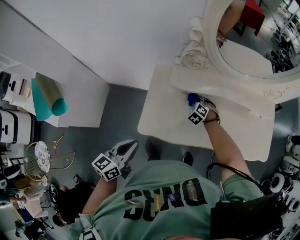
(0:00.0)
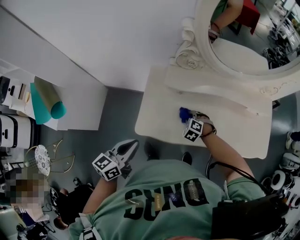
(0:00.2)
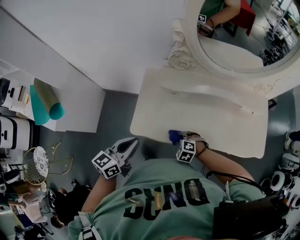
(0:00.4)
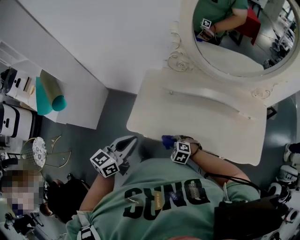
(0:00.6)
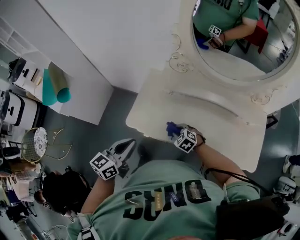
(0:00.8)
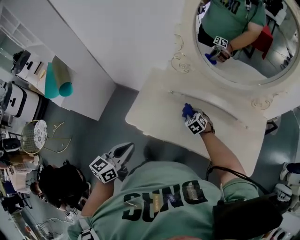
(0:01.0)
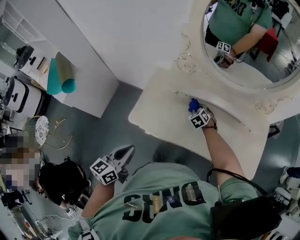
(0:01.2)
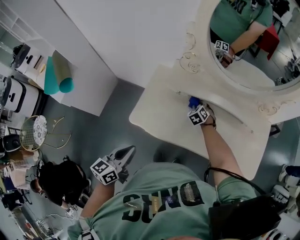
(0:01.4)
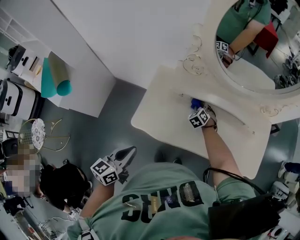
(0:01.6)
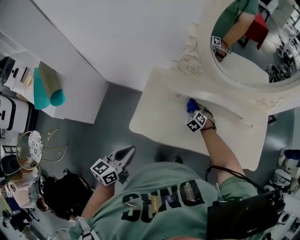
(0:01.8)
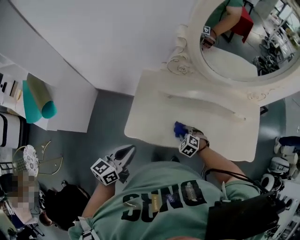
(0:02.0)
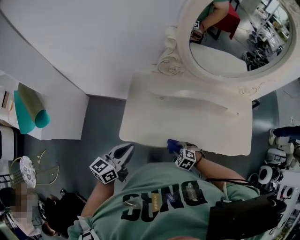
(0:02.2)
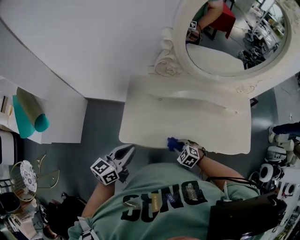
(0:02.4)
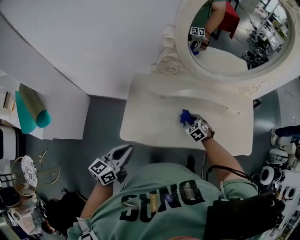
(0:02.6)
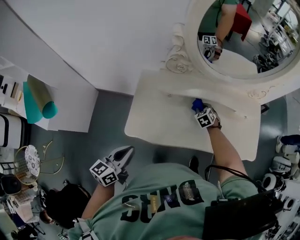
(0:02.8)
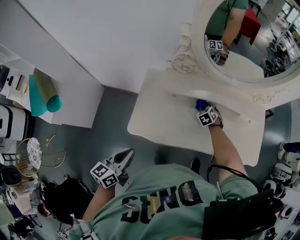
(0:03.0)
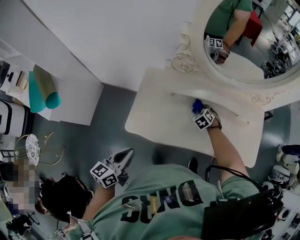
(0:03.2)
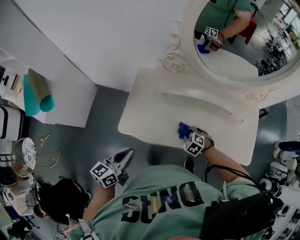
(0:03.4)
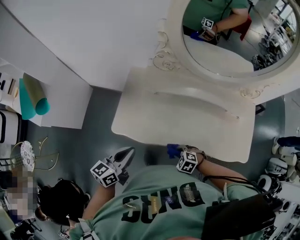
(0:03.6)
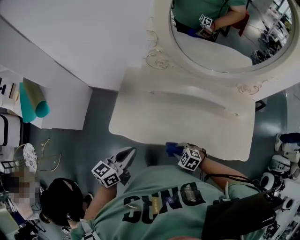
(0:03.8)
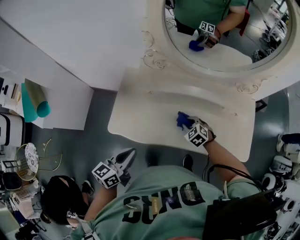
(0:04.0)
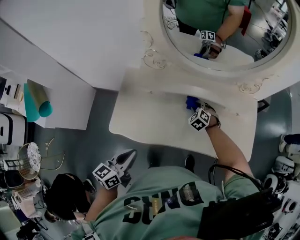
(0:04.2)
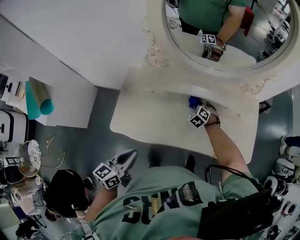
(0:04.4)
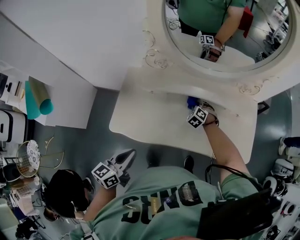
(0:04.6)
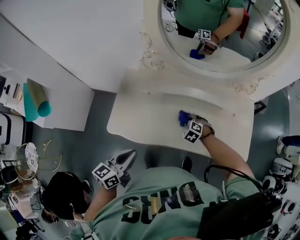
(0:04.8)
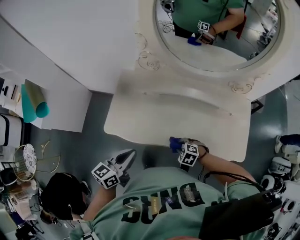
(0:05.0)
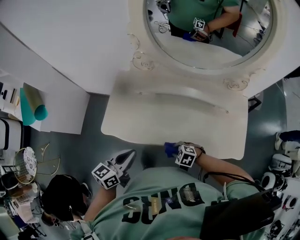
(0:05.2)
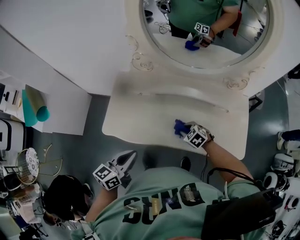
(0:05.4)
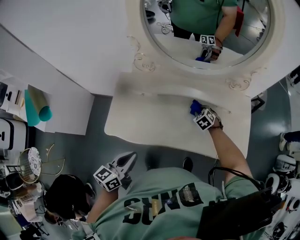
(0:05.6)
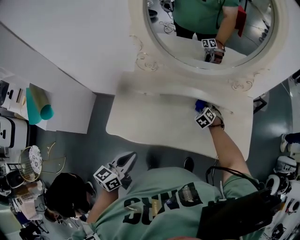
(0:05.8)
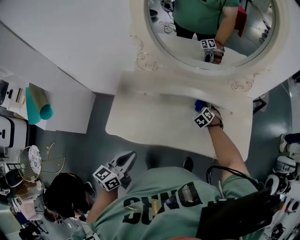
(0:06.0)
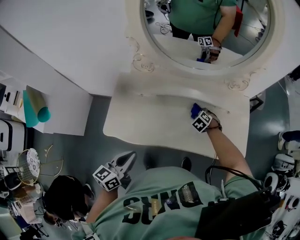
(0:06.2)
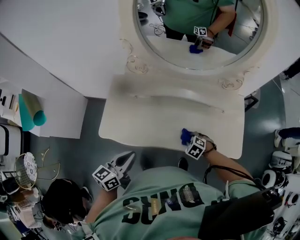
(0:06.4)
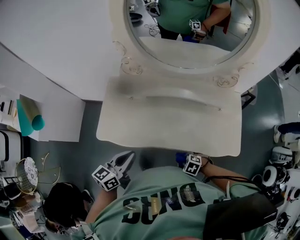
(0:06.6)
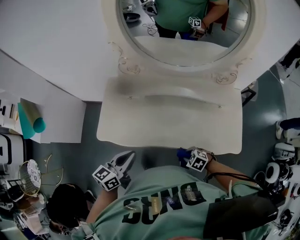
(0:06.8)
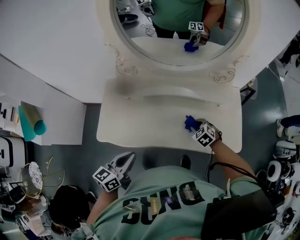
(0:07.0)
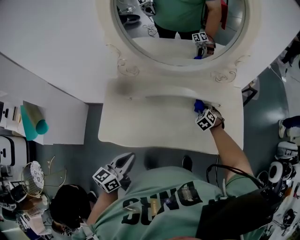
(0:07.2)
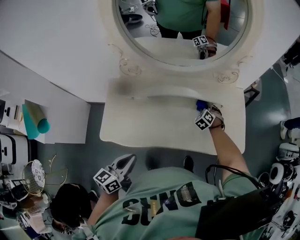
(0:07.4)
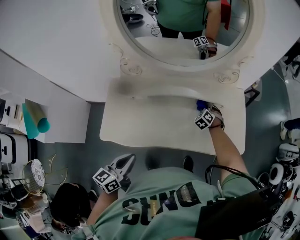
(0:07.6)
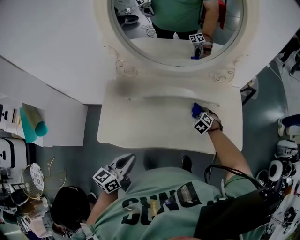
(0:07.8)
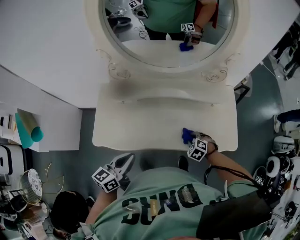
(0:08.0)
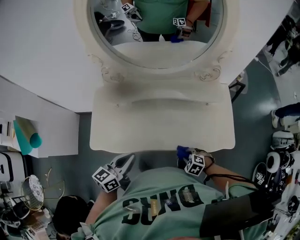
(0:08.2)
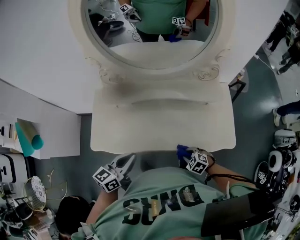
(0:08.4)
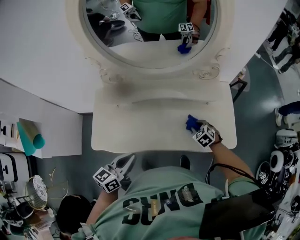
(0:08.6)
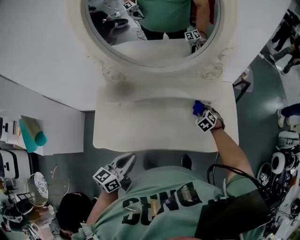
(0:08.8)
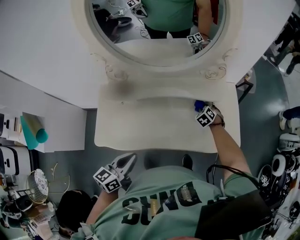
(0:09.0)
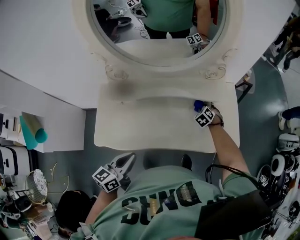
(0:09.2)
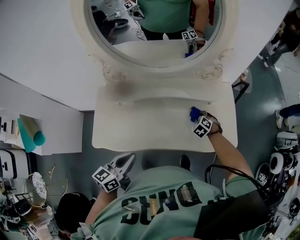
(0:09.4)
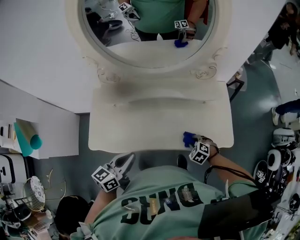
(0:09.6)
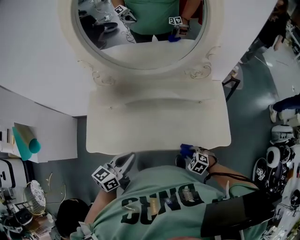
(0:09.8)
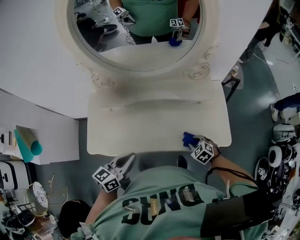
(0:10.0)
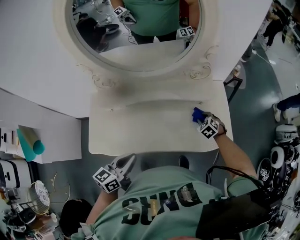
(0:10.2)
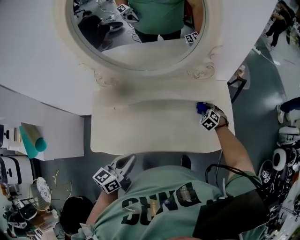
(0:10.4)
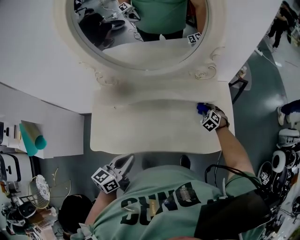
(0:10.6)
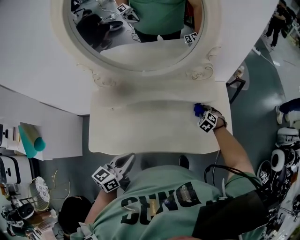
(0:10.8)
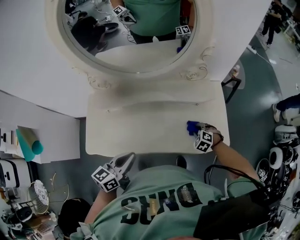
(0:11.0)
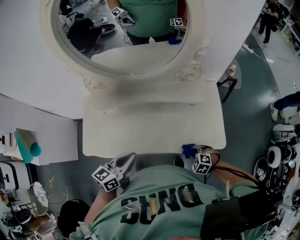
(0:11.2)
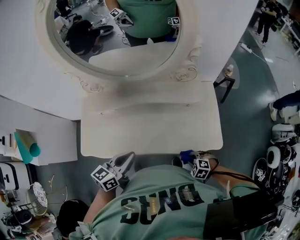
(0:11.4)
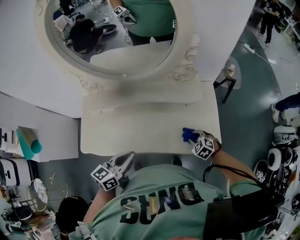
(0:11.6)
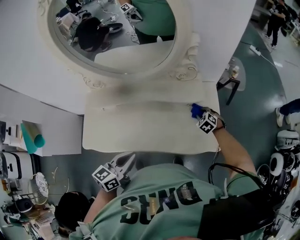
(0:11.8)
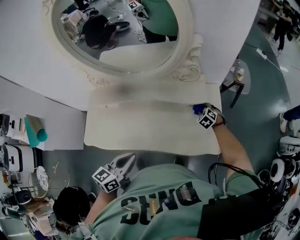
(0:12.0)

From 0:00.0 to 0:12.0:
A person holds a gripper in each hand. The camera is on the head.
From 0:01.6 to 0:03.0: The right gripper is displaced to the right by some 5 cm, and travels backward and back again, some 30 cm each way.
From 0:03.0 to 0:04.4: The left gripper ends up approximately 15 cm from where it was.
From 0:07.6 to 0:09.0: The left gripper ends up approximately 5 cm from where it was.
From 0:10.4 to 0:12.0: The left gripper changes place by roughly 15 cm.

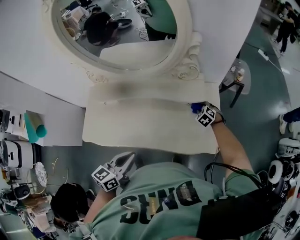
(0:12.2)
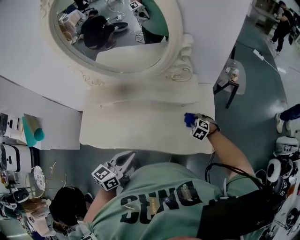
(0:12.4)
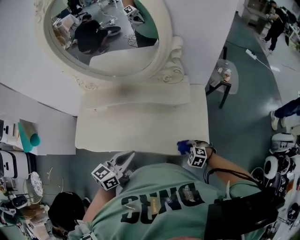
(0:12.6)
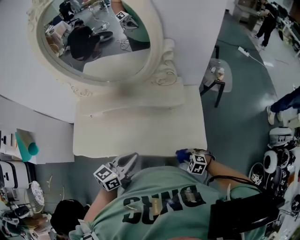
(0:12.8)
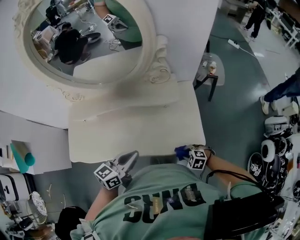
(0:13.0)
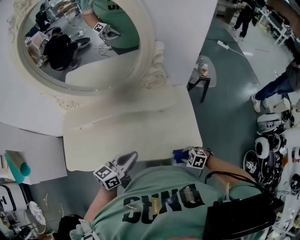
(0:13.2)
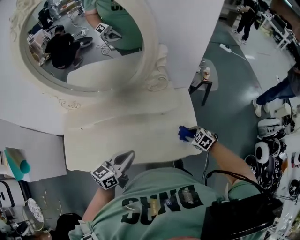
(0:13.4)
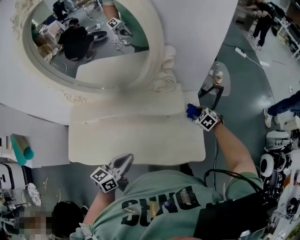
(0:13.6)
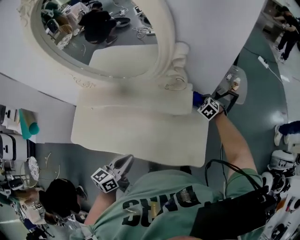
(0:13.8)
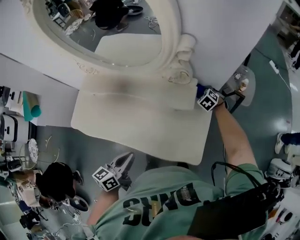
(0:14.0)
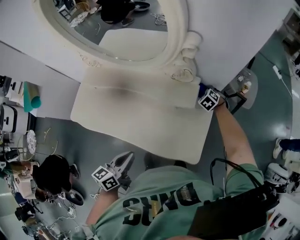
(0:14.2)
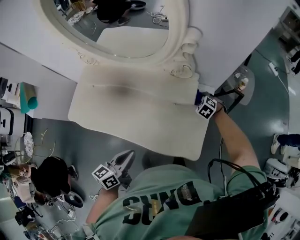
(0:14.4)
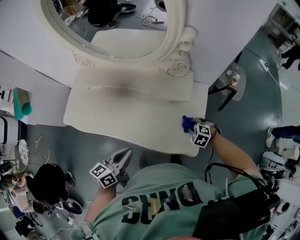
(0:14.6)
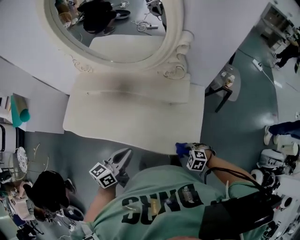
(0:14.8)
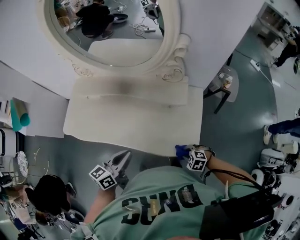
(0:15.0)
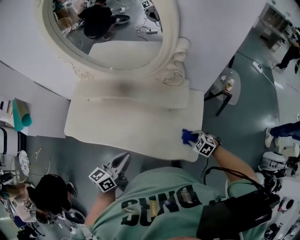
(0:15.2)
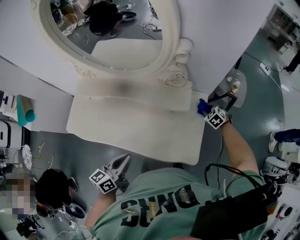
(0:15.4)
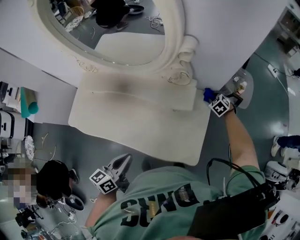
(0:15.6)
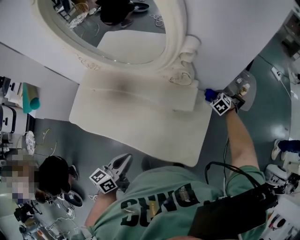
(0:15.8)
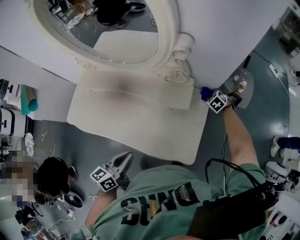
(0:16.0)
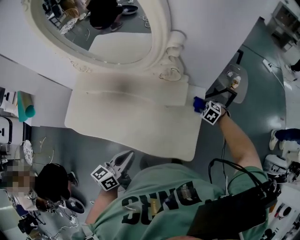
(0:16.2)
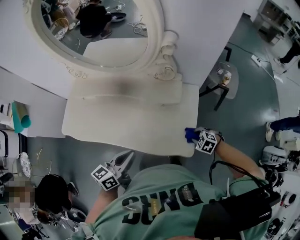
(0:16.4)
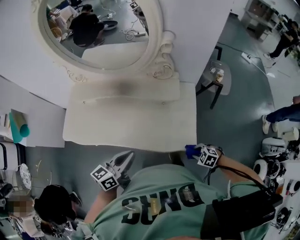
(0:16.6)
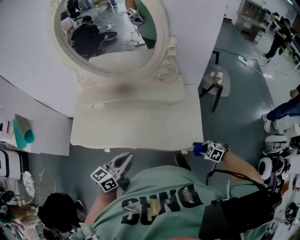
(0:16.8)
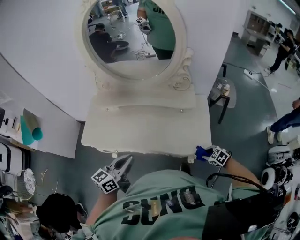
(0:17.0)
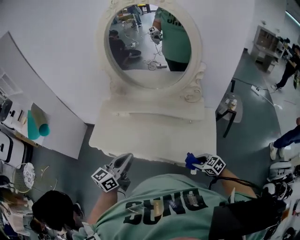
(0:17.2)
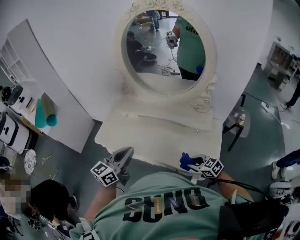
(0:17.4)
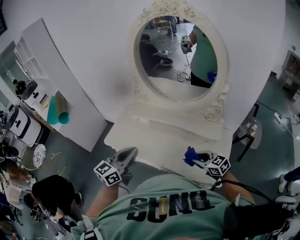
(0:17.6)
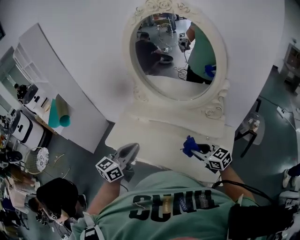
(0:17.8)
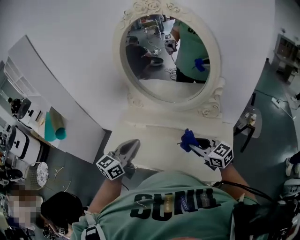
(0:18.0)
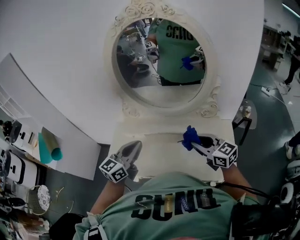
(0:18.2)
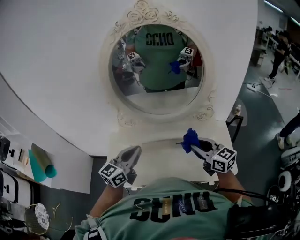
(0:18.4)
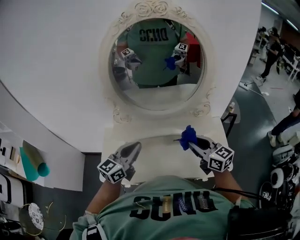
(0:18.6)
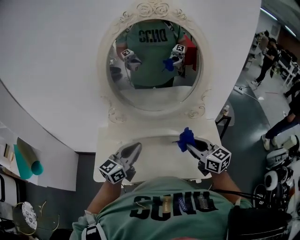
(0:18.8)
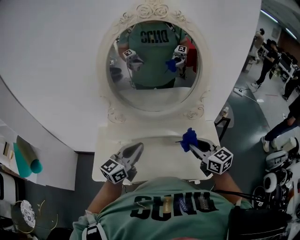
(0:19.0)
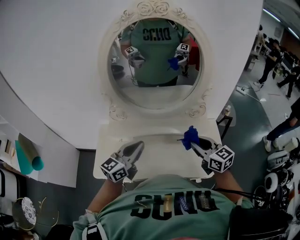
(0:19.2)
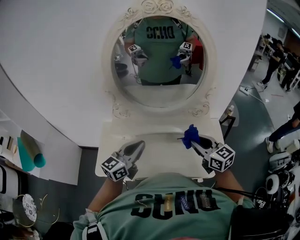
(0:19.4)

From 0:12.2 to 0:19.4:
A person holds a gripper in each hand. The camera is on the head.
From 0:12.2 to 0:13.6: The left gripper changes place by approximately 10 cm.
From 0:13.6 to 0:15.0: The left gripper changes place by approximately 5 cm. Meanwhile the right gripper shifts by approximately 30 cm, and changes its angle by some 40 degrees.
From 0:16.6 to 0:18.0: The left gripper shifts roughly 25 cm to the left, upward and forward, and turns by approximately 30 degrees. The right gripper travels upward, forward and to the left by roughly 50 cm, and tips its fingers upward by approximately 50 degrees.
From 0:18.0 to 0:19.4: The right gripper ends up approximately 5 cm from where it was, and rotates some 30 degrees; the left gripper is displaced forward by some 5 cm.

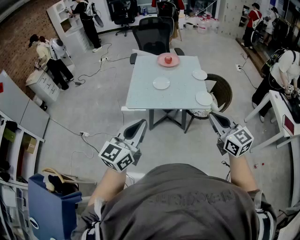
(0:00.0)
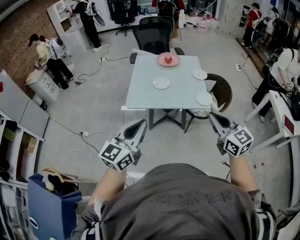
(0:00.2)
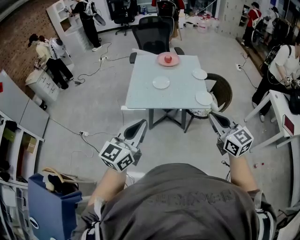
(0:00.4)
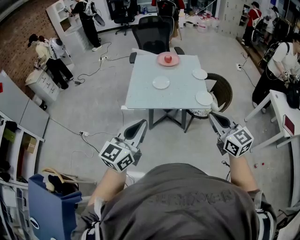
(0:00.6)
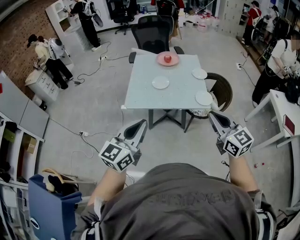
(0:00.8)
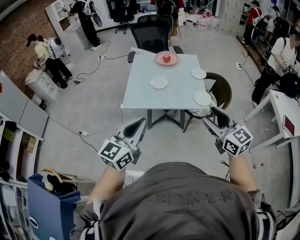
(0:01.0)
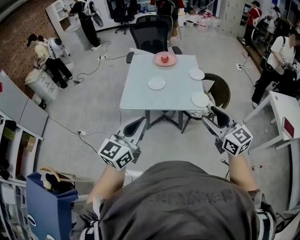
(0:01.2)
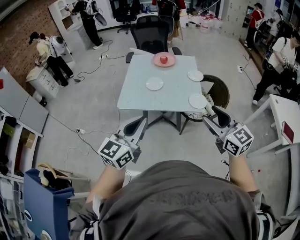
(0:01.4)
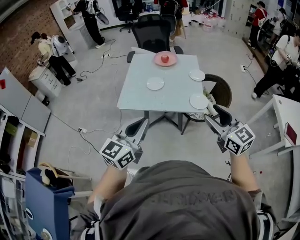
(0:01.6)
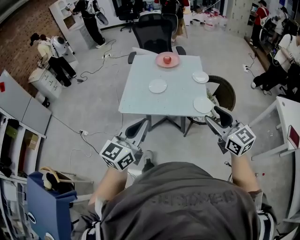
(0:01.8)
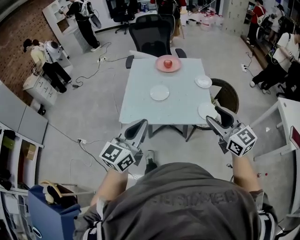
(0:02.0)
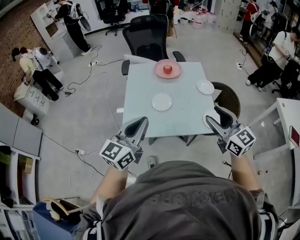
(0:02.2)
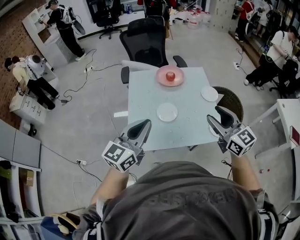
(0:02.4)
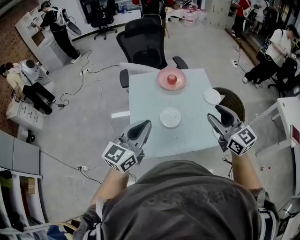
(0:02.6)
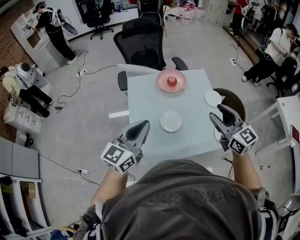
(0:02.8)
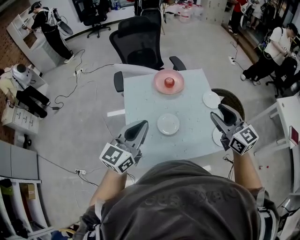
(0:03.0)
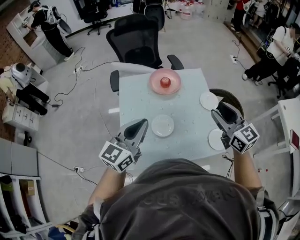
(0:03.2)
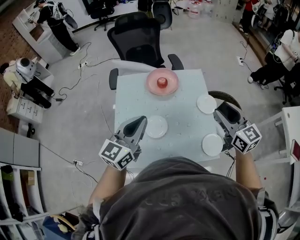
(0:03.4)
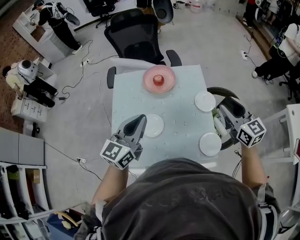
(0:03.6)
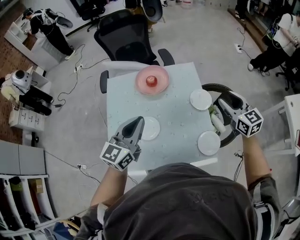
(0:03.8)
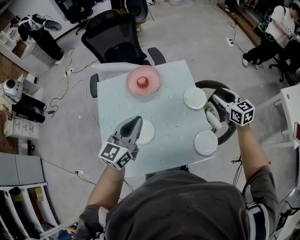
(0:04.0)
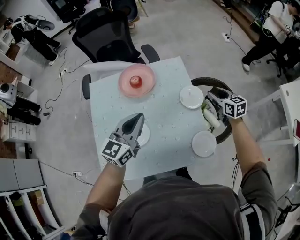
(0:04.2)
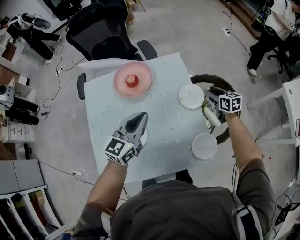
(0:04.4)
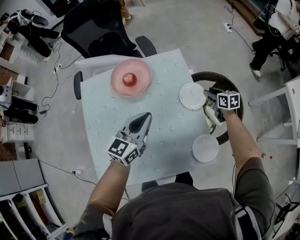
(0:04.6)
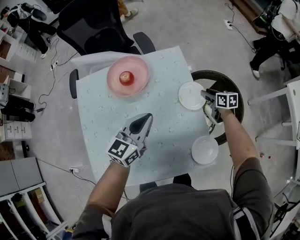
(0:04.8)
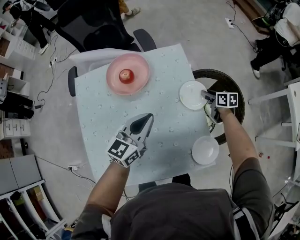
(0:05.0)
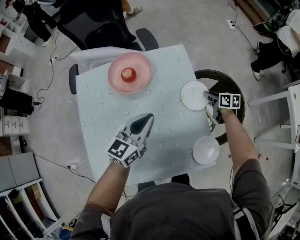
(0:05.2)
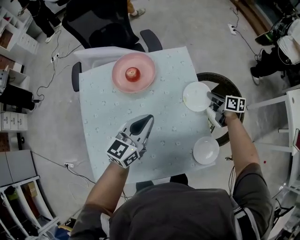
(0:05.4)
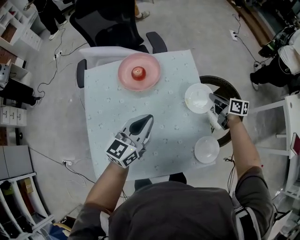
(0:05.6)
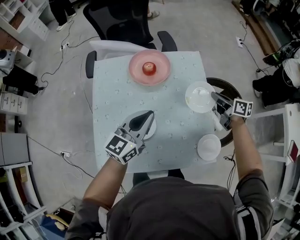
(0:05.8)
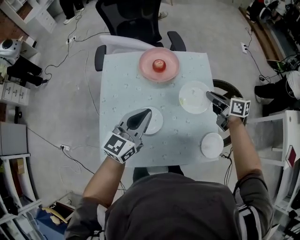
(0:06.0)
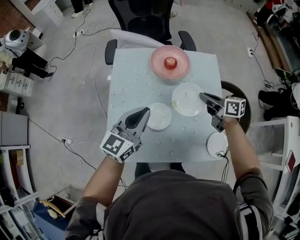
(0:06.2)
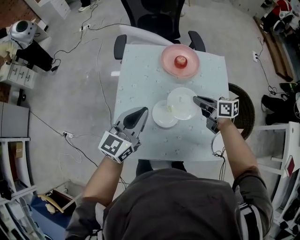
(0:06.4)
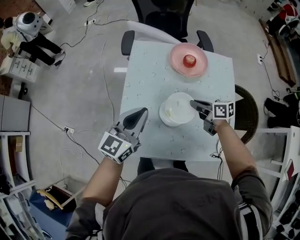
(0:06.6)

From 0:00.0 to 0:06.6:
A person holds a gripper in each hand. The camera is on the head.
From 0:00.0 to 0:01.6: The right gripper travels to the right and forward by approximately 10 cm, and opens up; the left gripper moves to the right, about 10 cm.
From 0:01.6 to 0:03.2: Both grippers are carried forward, some 50 cm.
From 0:03.2 to 0:05.0: The left gripper shifts about 35 cm to the right, downward and forward, while the right gripper travels downward, forward and to the right by approximately 50 cm, and angles its fingers downward, by about 30 degrees.
From 0:05.0 to 0:06.6: The right gripper ends up approximately 40 cm from where it was, changes its angle by roughly 30 degrees, and closes; the left gripper changes place by roughly 30 cm, and turns by approximately 20 degrees.